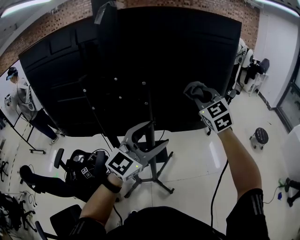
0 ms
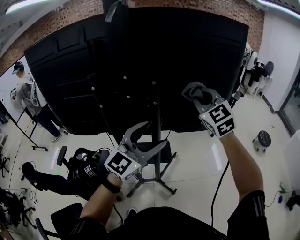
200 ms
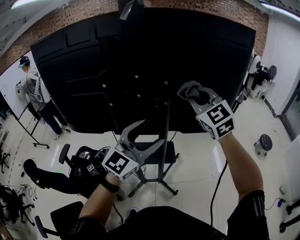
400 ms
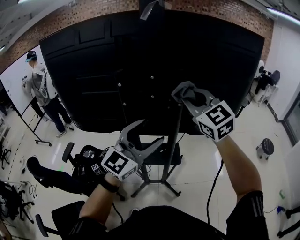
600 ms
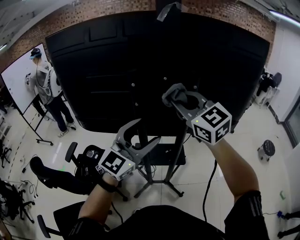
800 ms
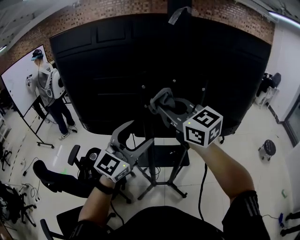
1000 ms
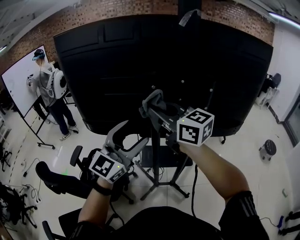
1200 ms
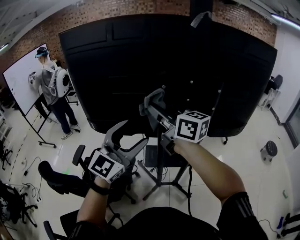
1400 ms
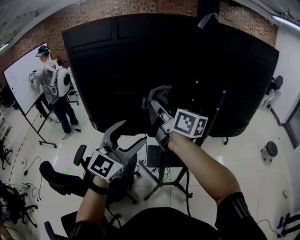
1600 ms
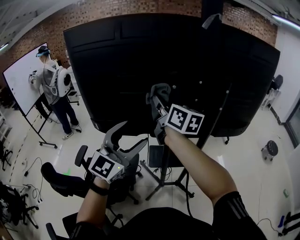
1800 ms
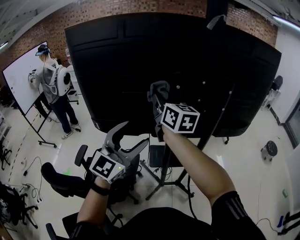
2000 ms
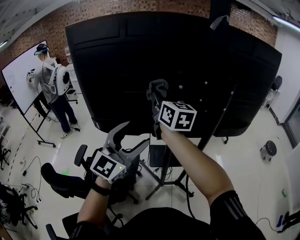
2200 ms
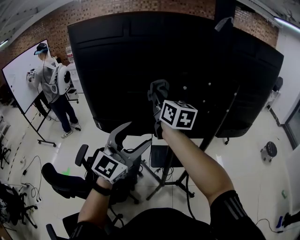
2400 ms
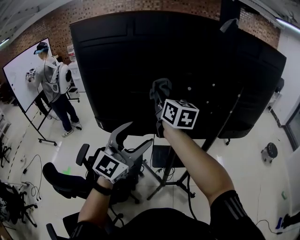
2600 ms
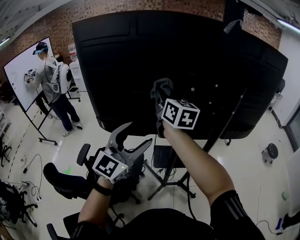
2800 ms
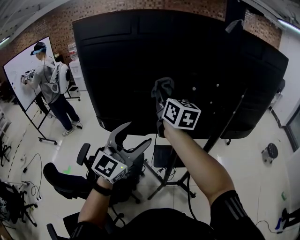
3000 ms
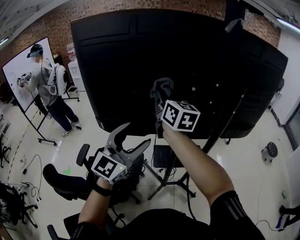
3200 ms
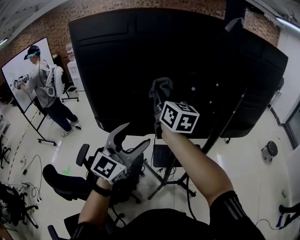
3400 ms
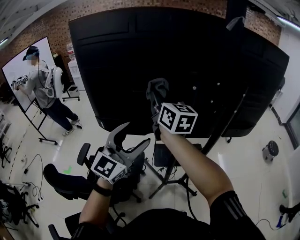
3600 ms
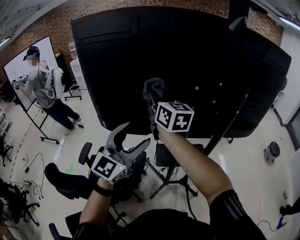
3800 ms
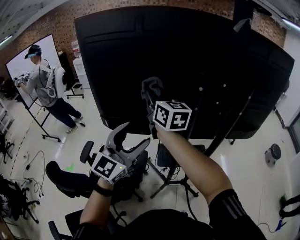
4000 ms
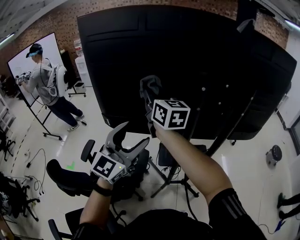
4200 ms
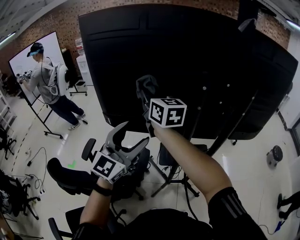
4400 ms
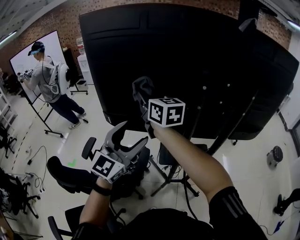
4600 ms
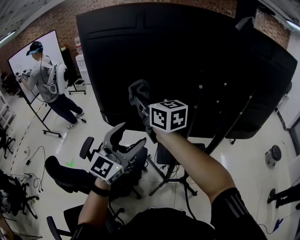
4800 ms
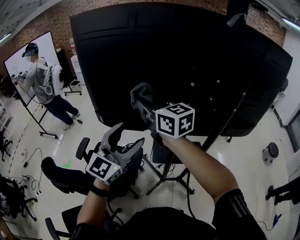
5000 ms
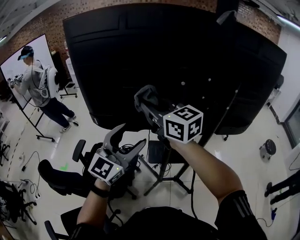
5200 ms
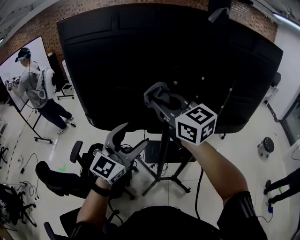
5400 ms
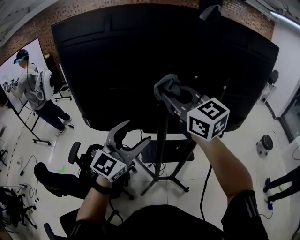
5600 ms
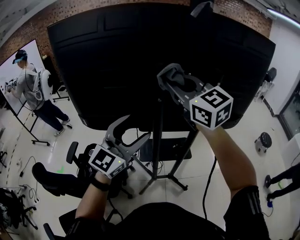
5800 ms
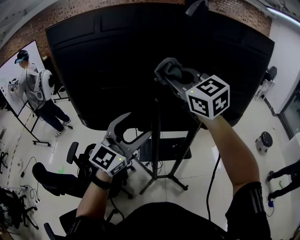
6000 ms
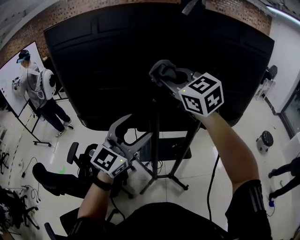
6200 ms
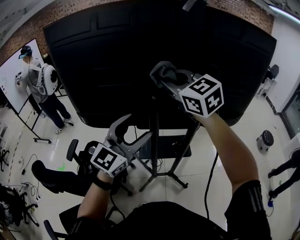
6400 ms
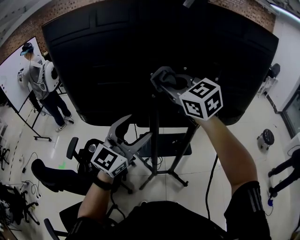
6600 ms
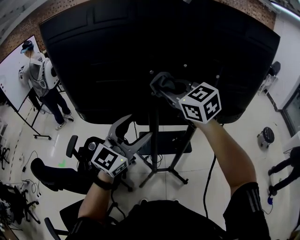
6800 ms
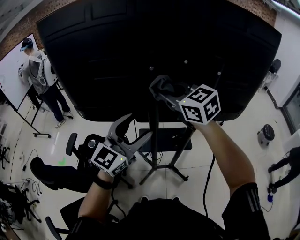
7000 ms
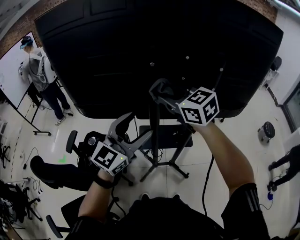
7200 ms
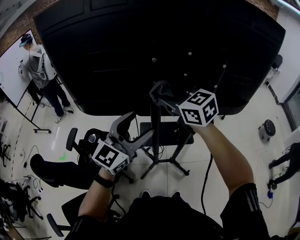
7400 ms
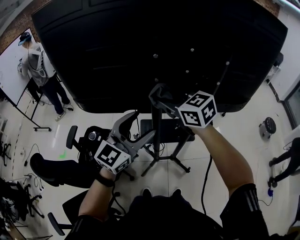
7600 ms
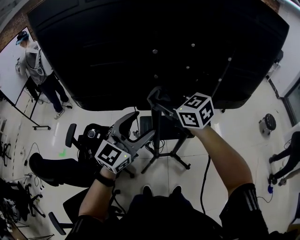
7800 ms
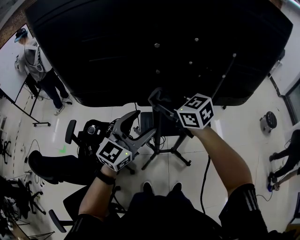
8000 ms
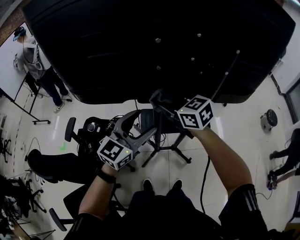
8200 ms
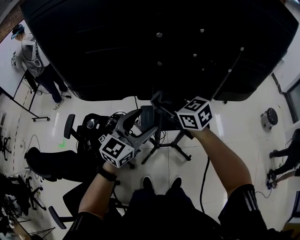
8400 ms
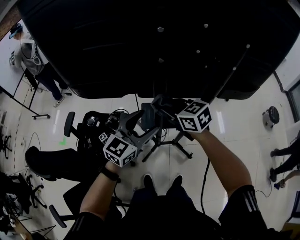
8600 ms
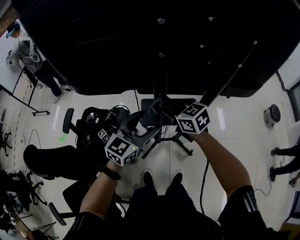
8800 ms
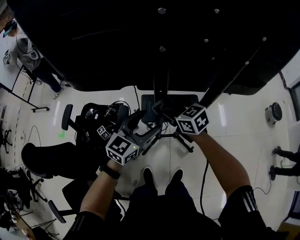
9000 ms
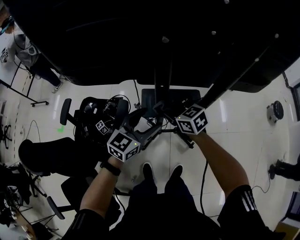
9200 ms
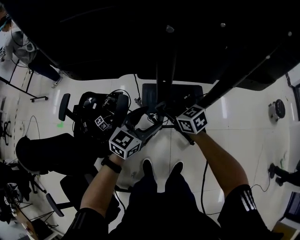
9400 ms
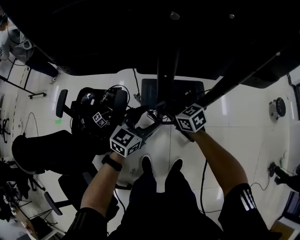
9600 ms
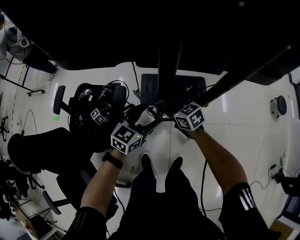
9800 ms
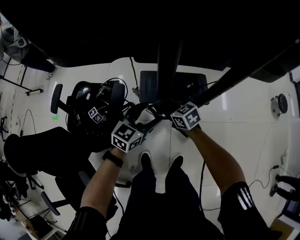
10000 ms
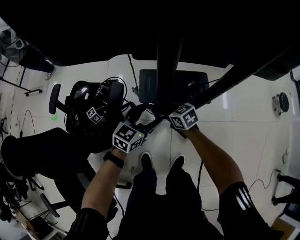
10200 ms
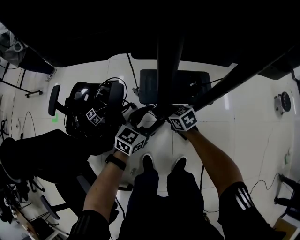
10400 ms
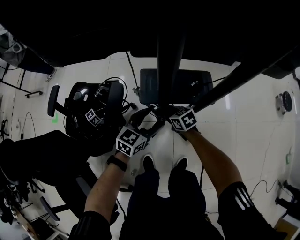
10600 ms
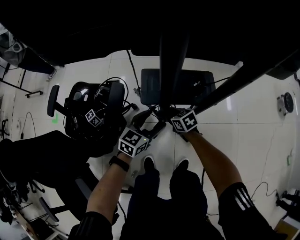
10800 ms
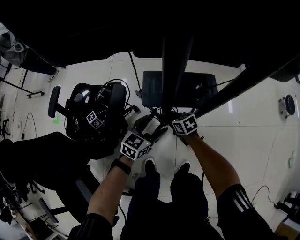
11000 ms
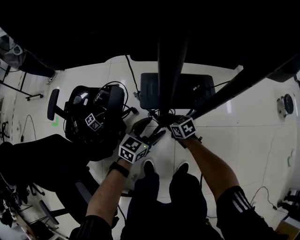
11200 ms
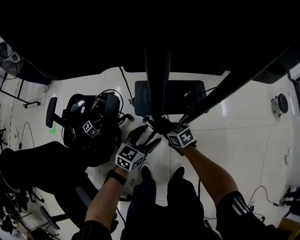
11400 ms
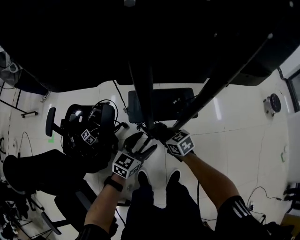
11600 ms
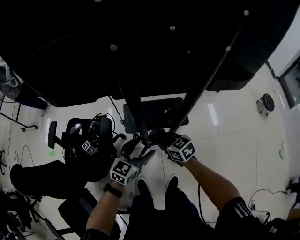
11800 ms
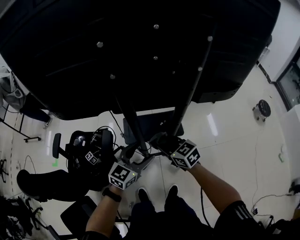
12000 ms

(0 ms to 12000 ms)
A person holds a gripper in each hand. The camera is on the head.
0 ms - 1600 ms: The right gripper shifts by about 50 cm, and rolls clockwise, seen from behind, by some 60 degrees. The left gripper ends up some 35 cm from where it was.
1600 ms - 3000 ms: The left gripper moves to the left, about 5 cm. The right gripper is displaced forward and to the left by approximately 10 cm, and changes its angle by about 30 degrees.
3000 ms - 4400 ms: The right gripper moves to the left, approximately 10 cm.
4400 ms - 6000 ms: The grippers both shift to the right by roughly 20 cm. The right gripper swivels about 30 degrees.
6000 ms - 7600 ms: The right gripper is displaced downward by approximately 20 cm, and rotates some 30 degrees; the left gripper moves downward, roughly 10 cm.
7600 ms - 9000 ms: The two grippers go approximately 20 cm downward.
9000 ms - 10400 ms: Both grippers travel together downward, approximately 25 cm.
10400 ms - 12000 ms: The two grippers go about 25 cm upward.

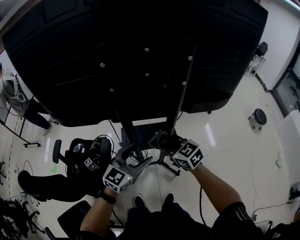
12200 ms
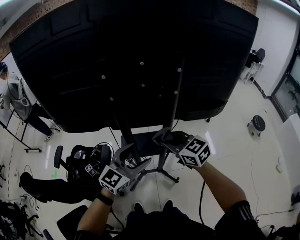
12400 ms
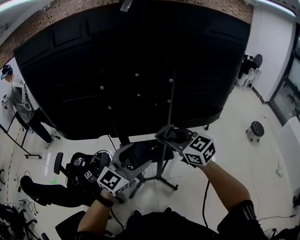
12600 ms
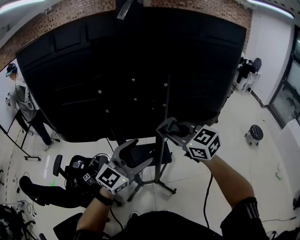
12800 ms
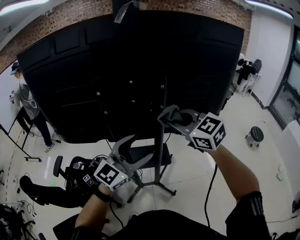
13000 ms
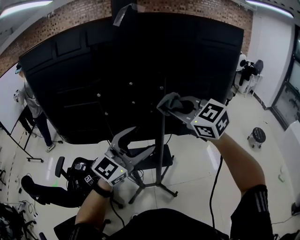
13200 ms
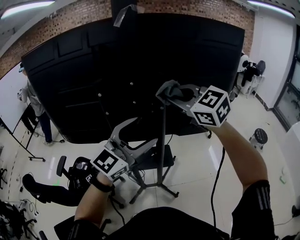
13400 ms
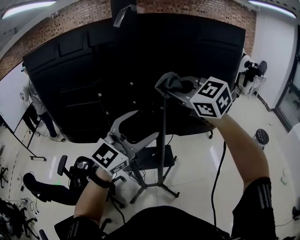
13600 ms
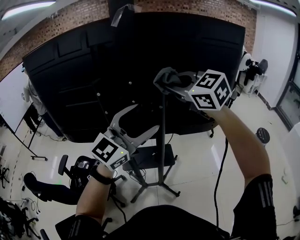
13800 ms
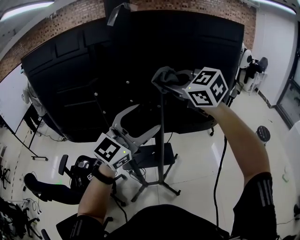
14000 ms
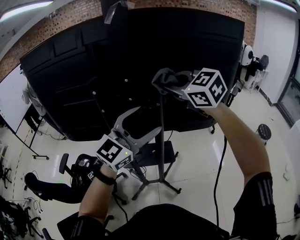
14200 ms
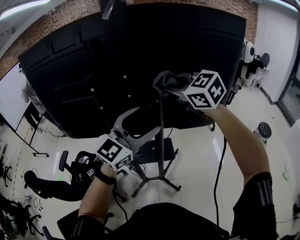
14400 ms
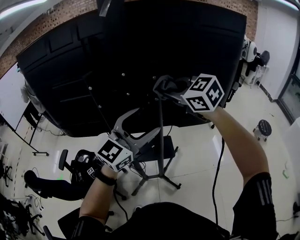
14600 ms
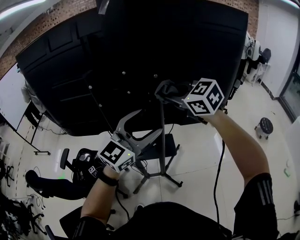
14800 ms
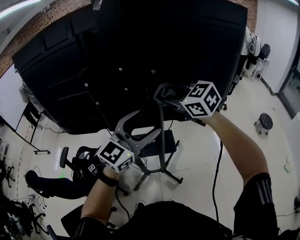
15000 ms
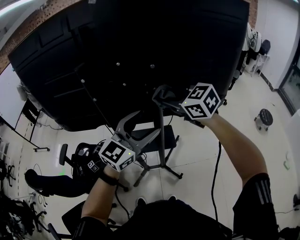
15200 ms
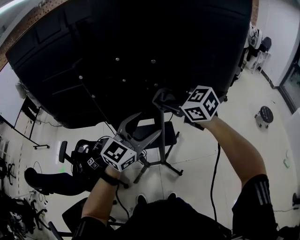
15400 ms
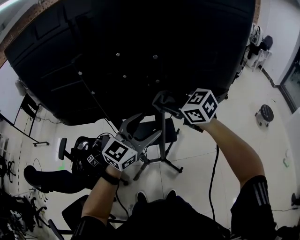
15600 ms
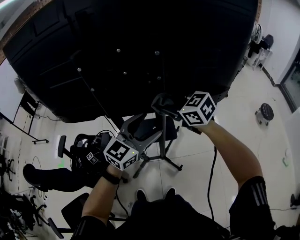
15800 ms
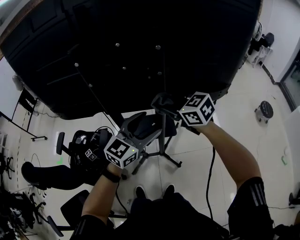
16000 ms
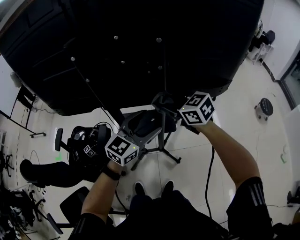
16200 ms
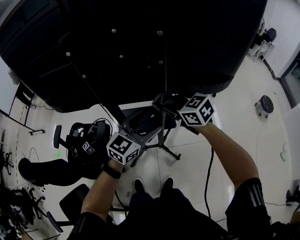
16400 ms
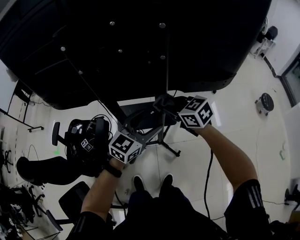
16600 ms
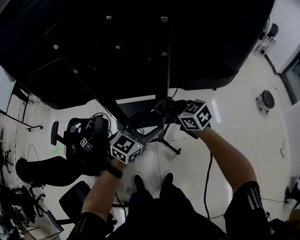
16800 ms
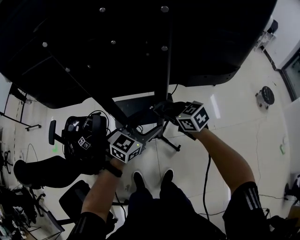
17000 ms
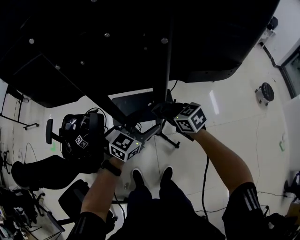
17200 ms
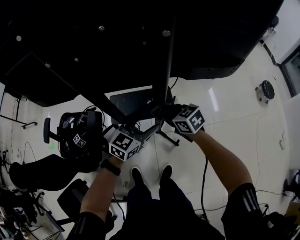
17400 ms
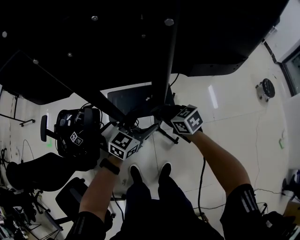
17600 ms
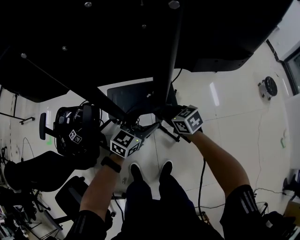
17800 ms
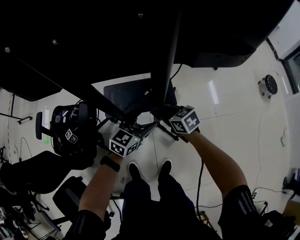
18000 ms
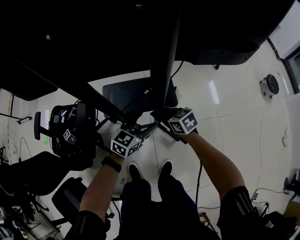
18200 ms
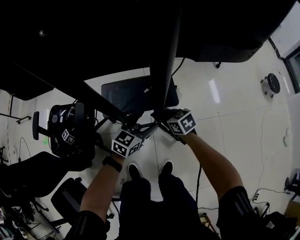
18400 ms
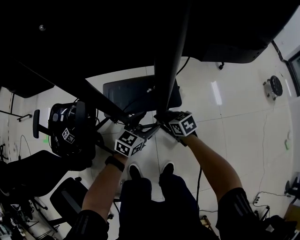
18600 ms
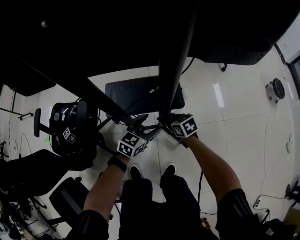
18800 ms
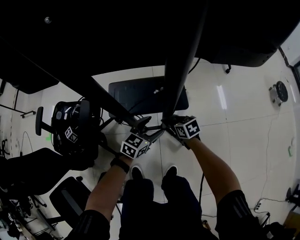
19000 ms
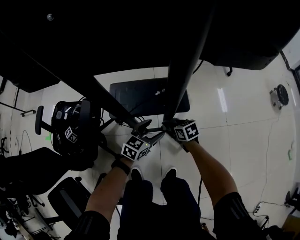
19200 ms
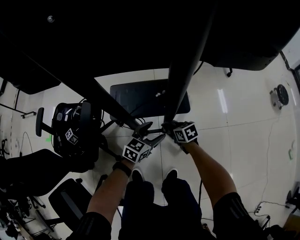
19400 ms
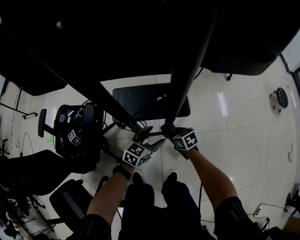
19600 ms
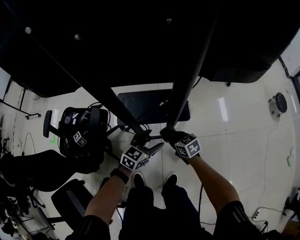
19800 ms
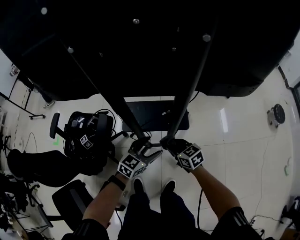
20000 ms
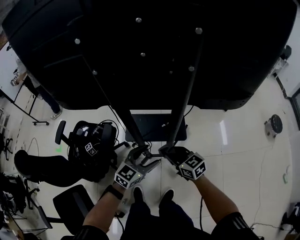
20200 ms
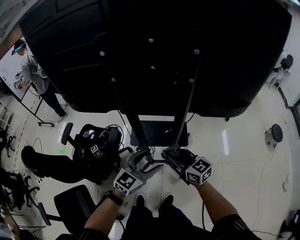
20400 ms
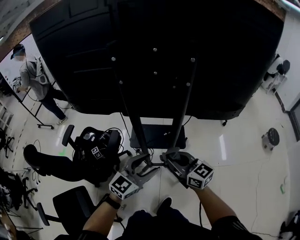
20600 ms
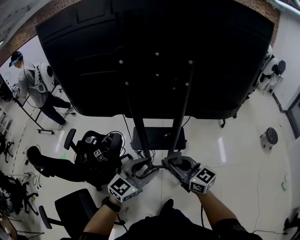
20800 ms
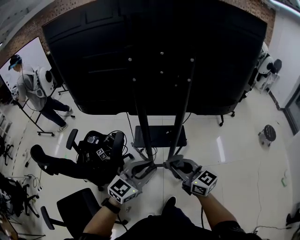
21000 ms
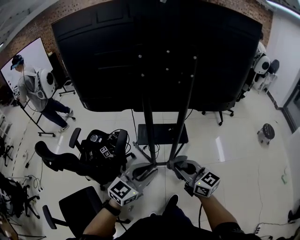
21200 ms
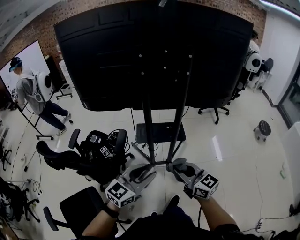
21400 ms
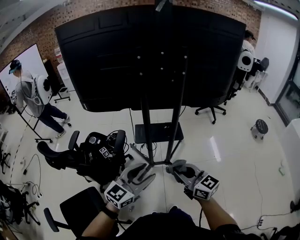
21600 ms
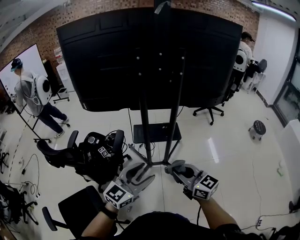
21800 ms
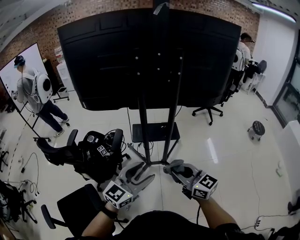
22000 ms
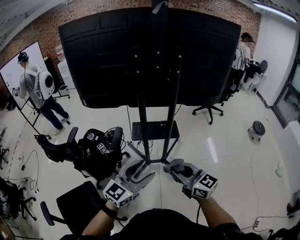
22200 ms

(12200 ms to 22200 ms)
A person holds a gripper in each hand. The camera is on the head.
12200 ms - 13600 ms: The two grippers go some 30 cm upward. The left gripper swivels about 30 degrees. Meanwhile the right gripper swivels about 30 degrees.
13600 ms - 15000 ms: The right gripper heads downward, covering about 15 cm. The left gripper shifts roughly 10 cm downward.
15000 ms - 16400 ms: Both grippers travel together downward, about 20 cm.
16400 ms - 18000 ms: The two grippers go roughly 30 cm downward. The right gripper rotates about 20 degrees.
18000 ms - 19400 ms: Both grippers move downward, about 20 cm.
19400 ms - 20800 ms: The left gripper shifts approximately 50 cm upward and backward, rotates about 30 degrees, and closes up; the right gripper shifts roughly 50 cm upward, and angles its fingers upward, by approximately 40 degrees.
20800 ms - 22200 ms: Both grippers move backward, some 20 cm.

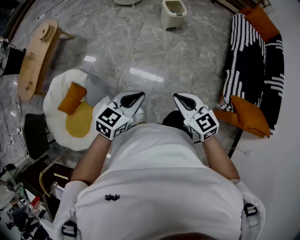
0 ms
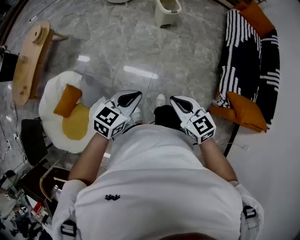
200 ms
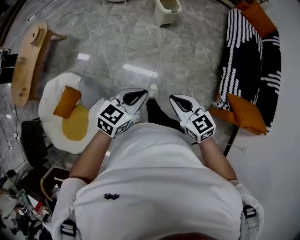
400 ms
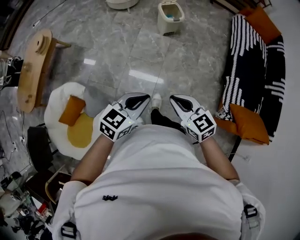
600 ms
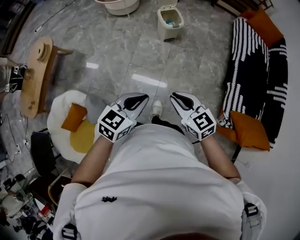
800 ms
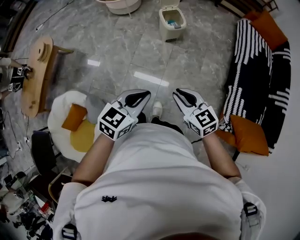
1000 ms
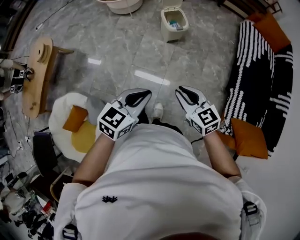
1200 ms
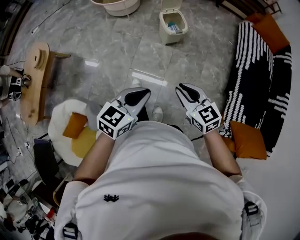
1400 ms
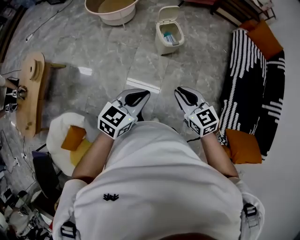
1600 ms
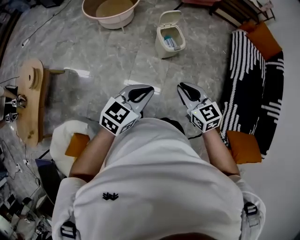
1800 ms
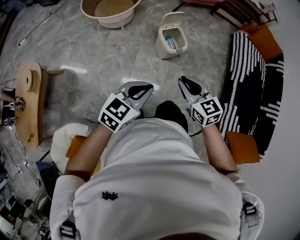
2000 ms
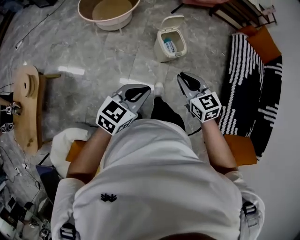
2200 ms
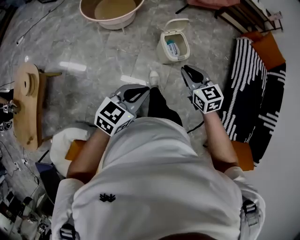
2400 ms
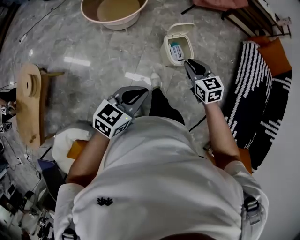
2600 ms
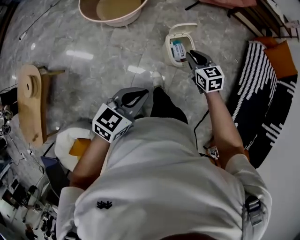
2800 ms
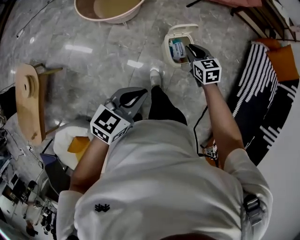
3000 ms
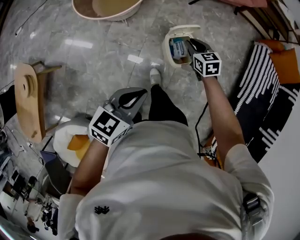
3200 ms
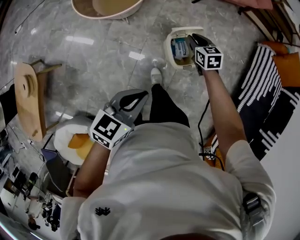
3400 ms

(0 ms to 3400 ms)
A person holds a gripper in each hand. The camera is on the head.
0 ms - 1600 ms: The pair of grippers is taken forward, roughly 40 cm.
1600 ms - 3400 ms: The pair of grippers is taken forward, approximately 50 cm. The right gripper swivels about 20 degrees.
